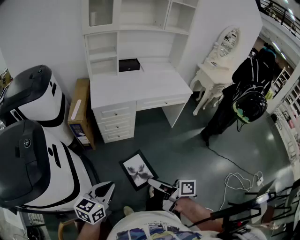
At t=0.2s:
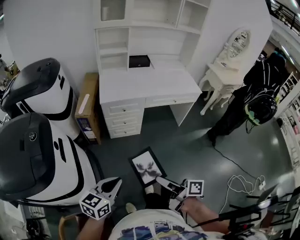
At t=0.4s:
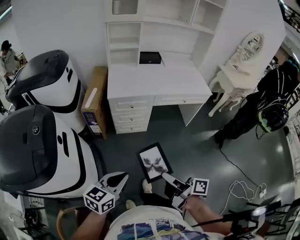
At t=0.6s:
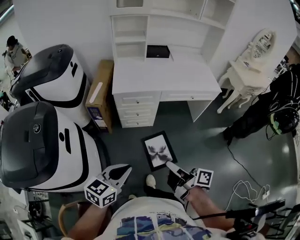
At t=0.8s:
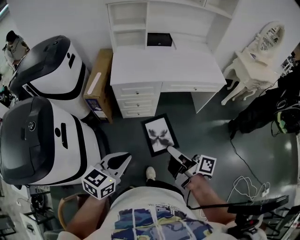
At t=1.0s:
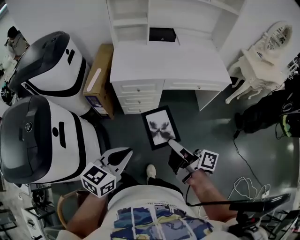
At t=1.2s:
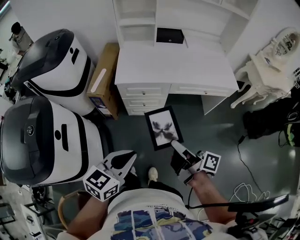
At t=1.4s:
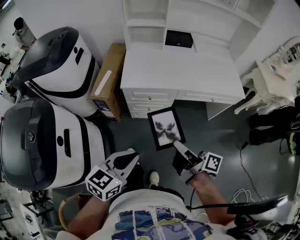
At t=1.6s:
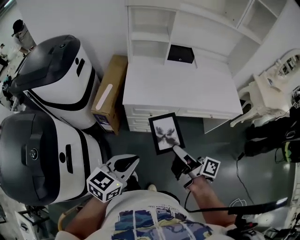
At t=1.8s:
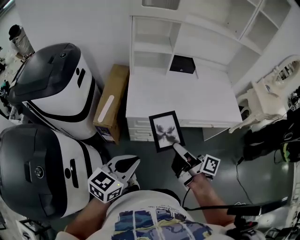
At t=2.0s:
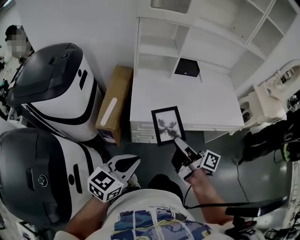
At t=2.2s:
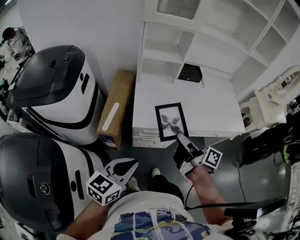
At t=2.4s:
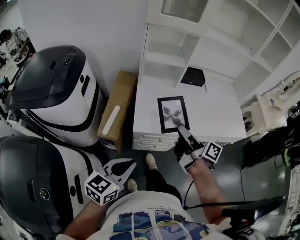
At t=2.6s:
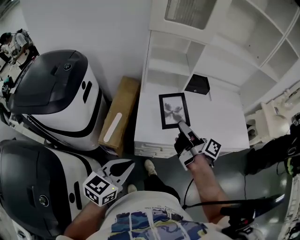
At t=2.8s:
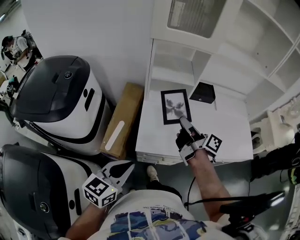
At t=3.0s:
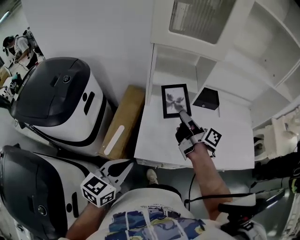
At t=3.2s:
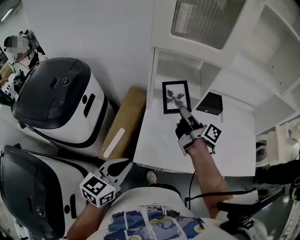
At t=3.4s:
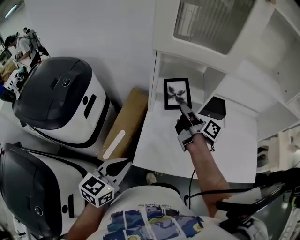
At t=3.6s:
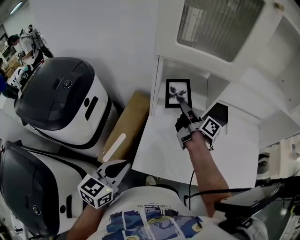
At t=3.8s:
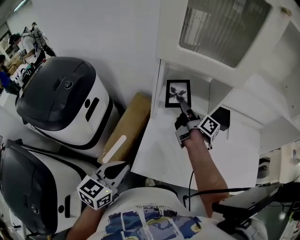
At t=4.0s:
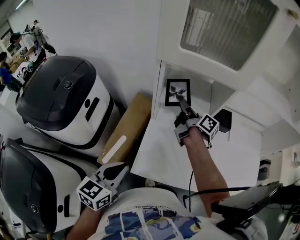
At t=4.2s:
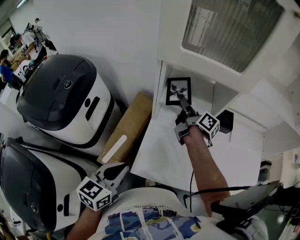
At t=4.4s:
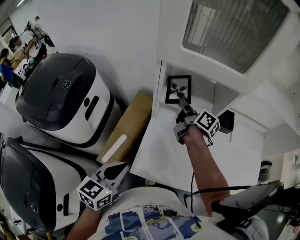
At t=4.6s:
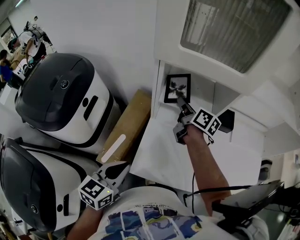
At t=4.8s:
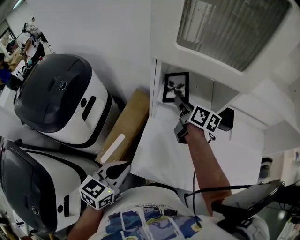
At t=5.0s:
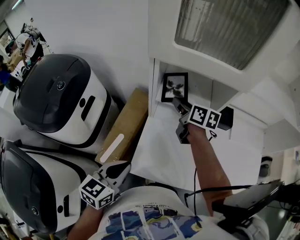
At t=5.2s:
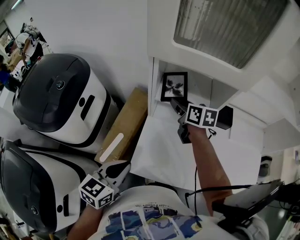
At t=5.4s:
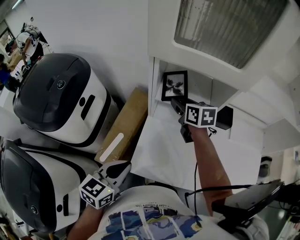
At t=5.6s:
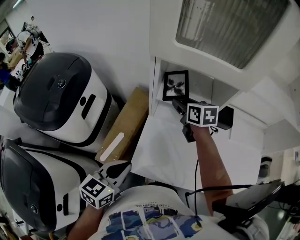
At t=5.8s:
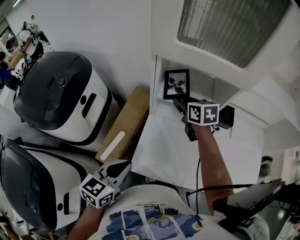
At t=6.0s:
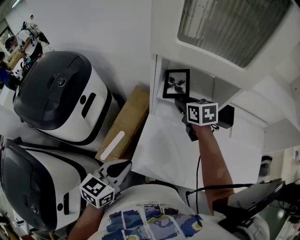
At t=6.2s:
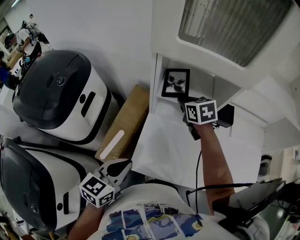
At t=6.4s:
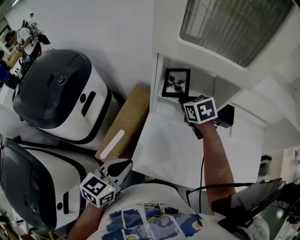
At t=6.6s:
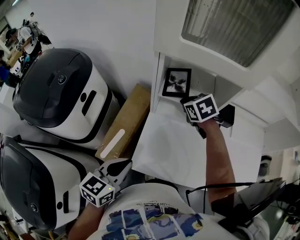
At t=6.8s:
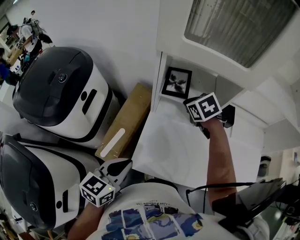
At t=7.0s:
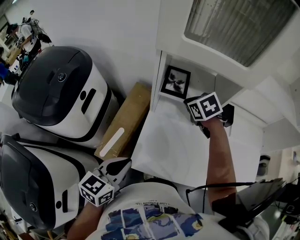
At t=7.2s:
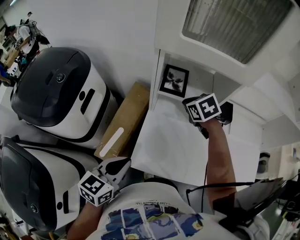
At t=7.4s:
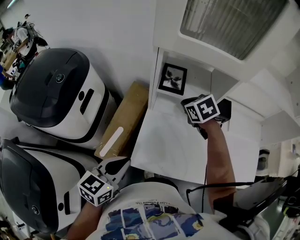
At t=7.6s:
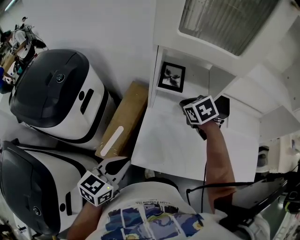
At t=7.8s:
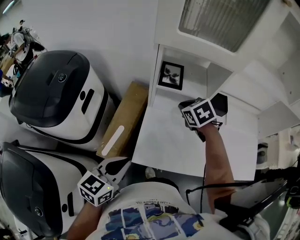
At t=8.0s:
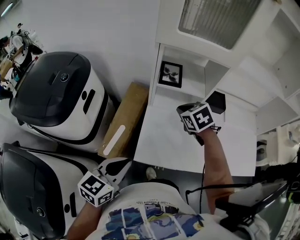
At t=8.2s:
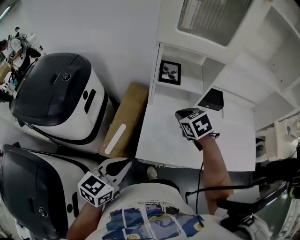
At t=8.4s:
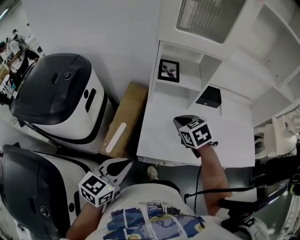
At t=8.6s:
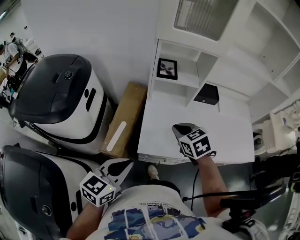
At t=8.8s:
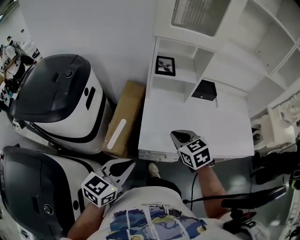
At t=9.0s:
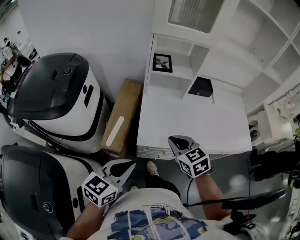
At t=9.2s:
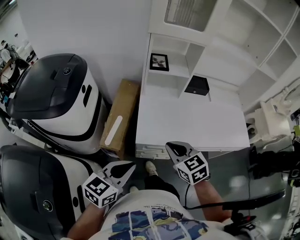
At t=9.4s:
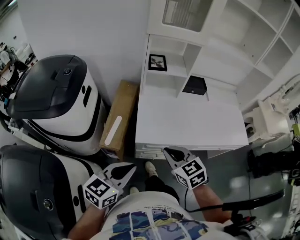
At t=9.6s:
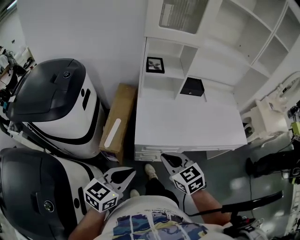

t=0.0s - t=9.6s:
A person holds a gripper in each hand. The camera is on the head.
t=0.0s - t=1.6s: The two grippers go roughly 30 cm forward.
t=1.6s - t=3.2s: The left gripper travels forward by some 30 cm. The right gripper moves forward, roughly 50 cm.
t=3.2s - t=4.8s: The right gripper shifts about 15 cm forward, and turns by about 30 degrees; the left gripper goes roughly 10 cm forward.
t=4.8s - t=6.4s: The right gripper twists about 40 degrees counterclockwise, seen from behind.
t=6.4s - t=8.0s: The right gripper is displaced backward by approximately 10 cm. The left gripper goes some 5 cm backward.
t=8.0s - t=9.6s: The left gripper is displaced backward by roughly 15 cm. Meanwhile the right gripper is displaced backward by some 35 cm, and rotates some 20 degrees.

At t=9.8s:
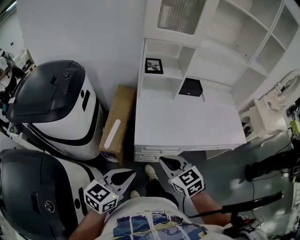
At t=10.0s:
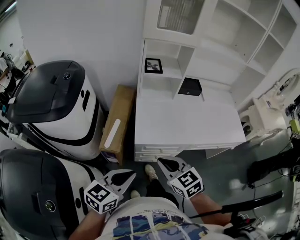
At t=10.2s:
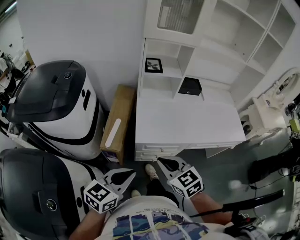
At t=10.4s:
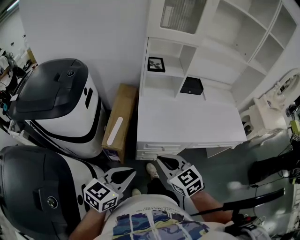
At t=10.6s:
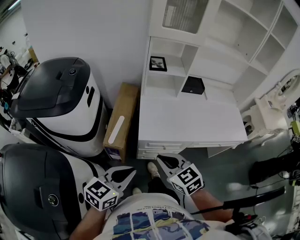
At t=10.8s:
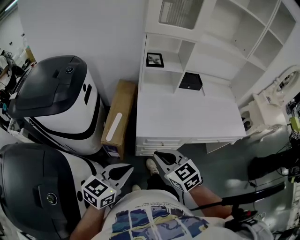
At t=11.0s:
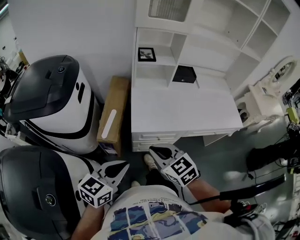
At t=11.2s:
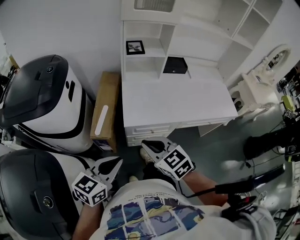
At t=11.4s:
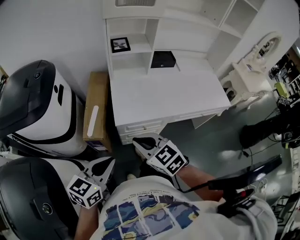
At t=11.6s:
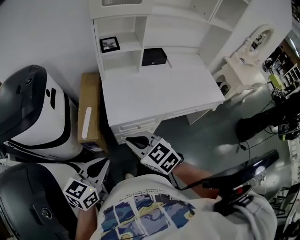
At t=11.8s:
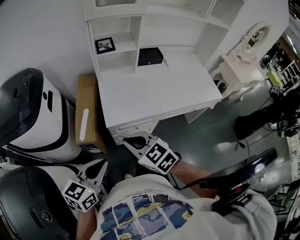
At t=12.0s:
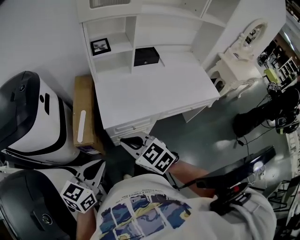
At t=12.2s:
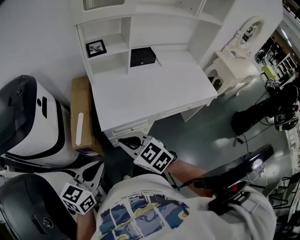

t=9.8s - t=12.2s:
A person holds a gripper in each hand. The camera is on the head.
t=9.8s - t=12.2s: The grippers make only small movements.

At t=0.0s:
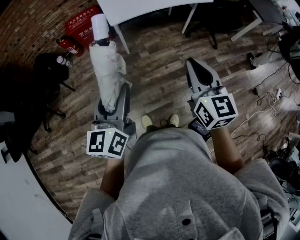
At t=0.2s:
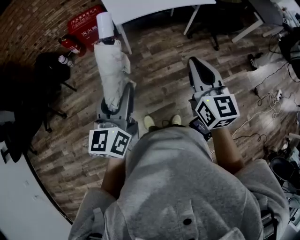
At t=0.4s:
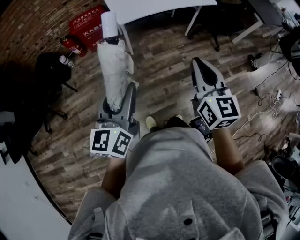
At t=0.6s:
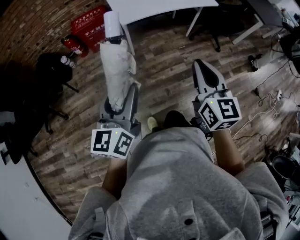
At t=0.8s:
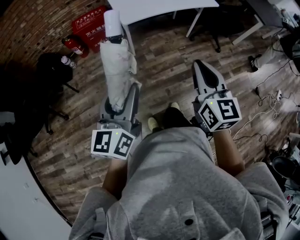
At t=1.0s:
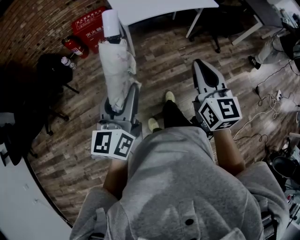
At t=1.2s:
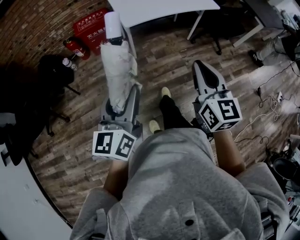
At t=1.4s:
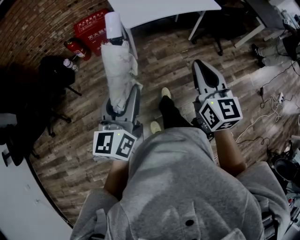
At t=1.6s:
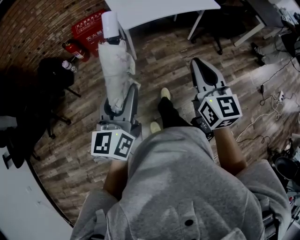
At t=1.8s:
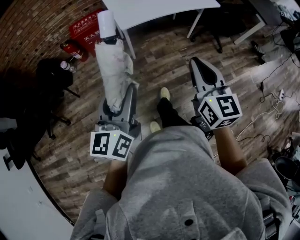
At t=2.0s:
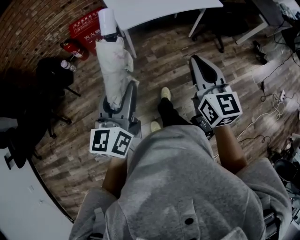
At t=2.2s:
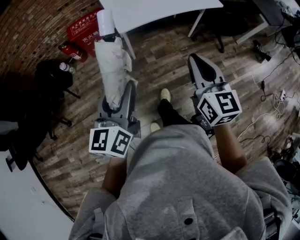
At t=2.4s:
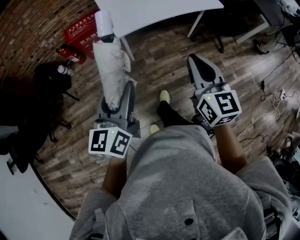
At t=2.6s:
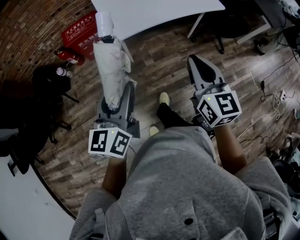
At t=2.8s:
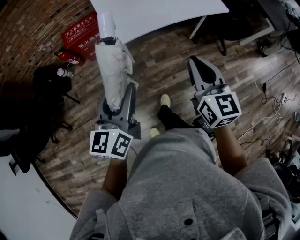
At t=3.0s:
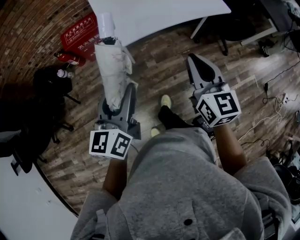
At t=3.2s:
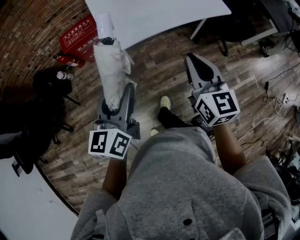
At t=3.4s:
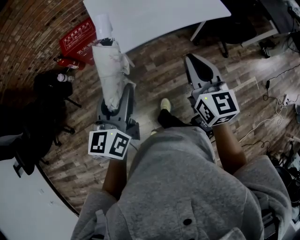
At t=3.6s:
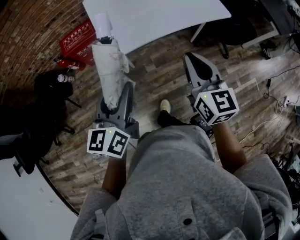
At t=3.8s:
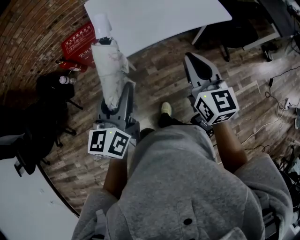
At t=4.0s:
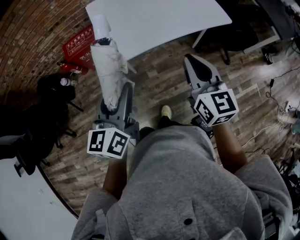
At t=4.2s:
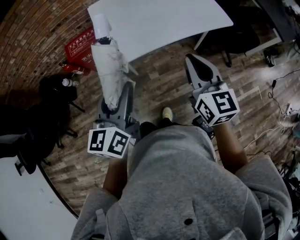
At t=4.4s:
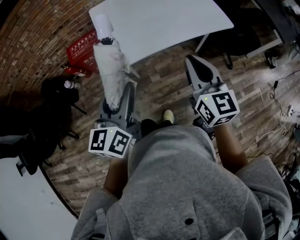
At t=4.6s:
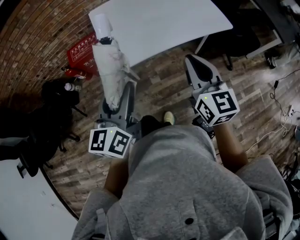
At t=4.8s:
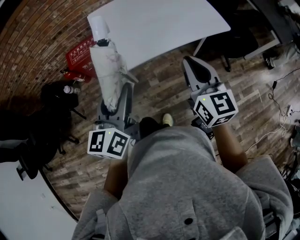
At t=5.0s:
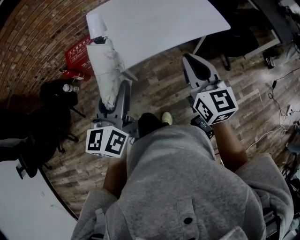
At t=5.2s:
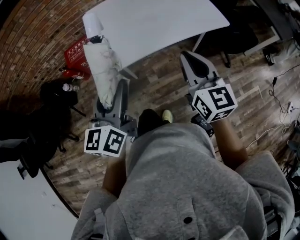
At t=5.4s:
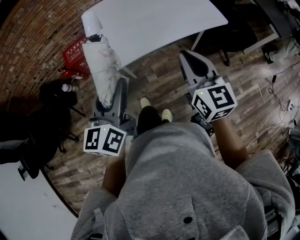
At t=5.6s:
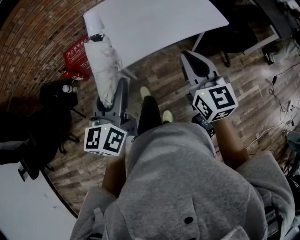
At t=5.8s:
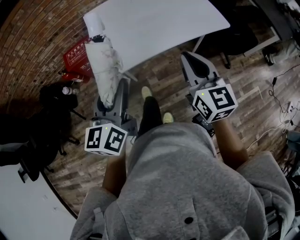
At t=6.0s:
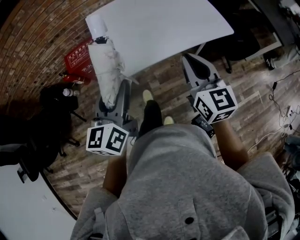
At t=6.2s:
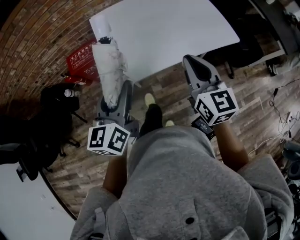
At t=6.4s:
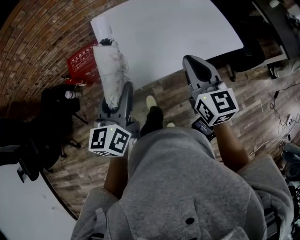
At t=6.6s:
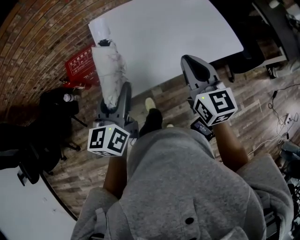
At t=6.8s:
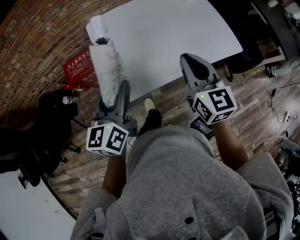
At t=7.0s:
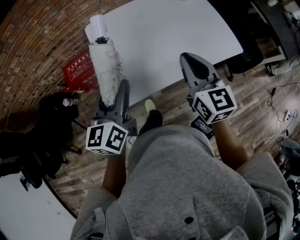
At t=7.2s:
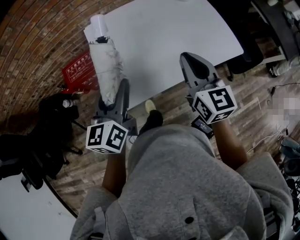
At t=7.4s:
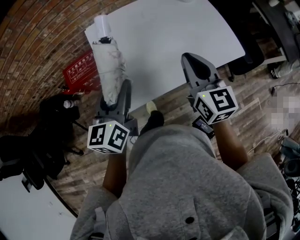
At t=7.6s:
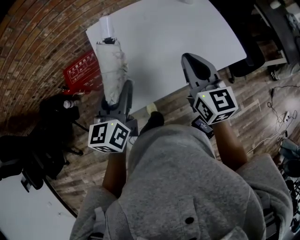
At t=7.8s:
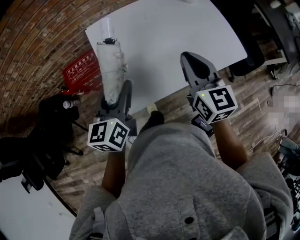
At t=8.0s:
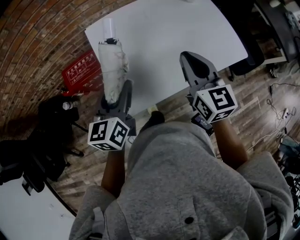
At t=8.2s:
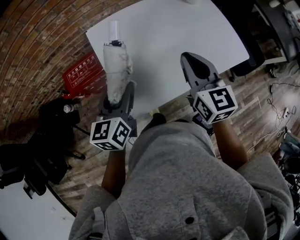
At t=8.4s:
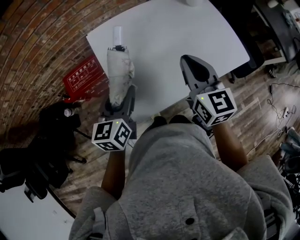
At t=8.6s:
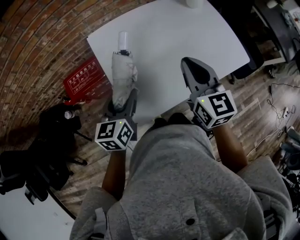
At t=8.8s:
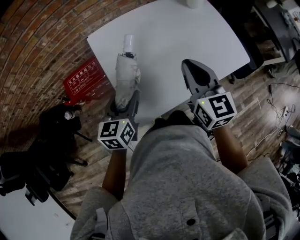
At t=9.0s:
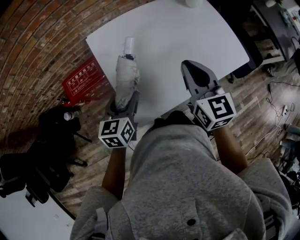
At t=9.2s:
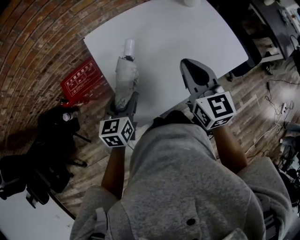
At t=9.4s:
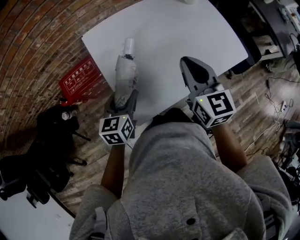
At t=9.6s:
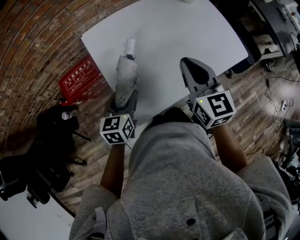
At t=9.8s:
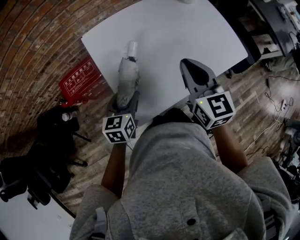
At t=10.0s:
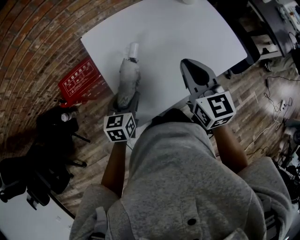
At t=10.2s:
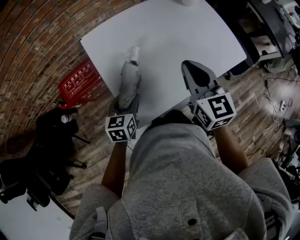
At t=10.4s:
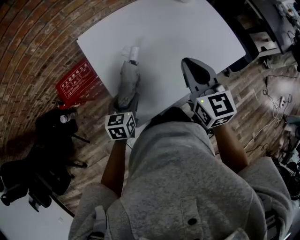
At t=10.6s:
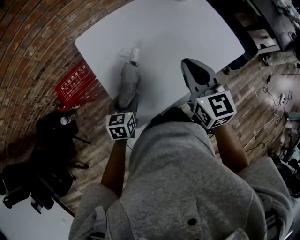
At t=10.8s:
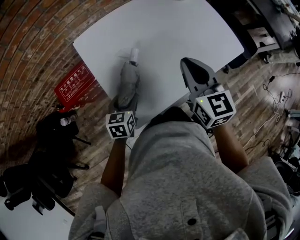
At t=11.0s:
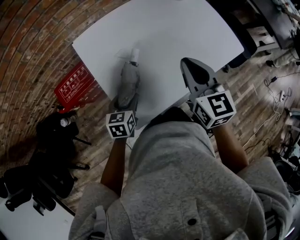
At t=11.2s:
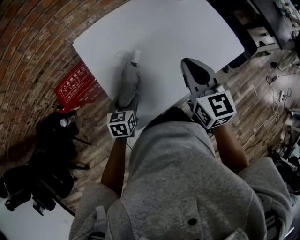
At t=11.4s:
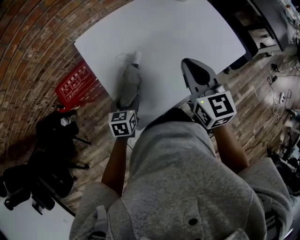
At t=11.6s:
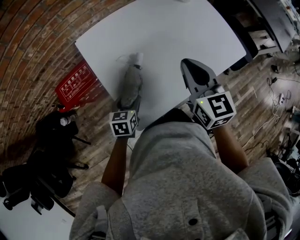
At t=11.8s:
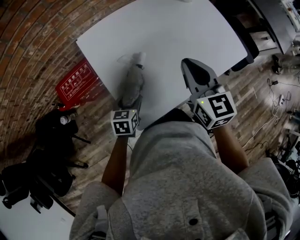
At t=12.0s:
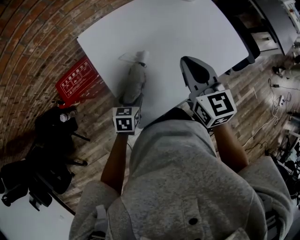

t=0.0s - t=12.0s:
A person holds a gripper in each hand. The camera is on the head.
t=0.0s - t=1.6s: The two grippers go approximately 5 cm to the left.
t=1.6s - t=3.0s: The grippers both shift forward by approximately 20 cm.
t=3.0s - t=4.4s: The grippers both shift forward by approximately 10 cm.
t=4.4s - t=6.0s: The two grippers go approximately 10 cm forward.
t=6.0s - t=7.6s: Both grippers move forward, some 20 cm.
t=7.6s - t=9.0s: The left gripper shifts roughly 10 cm downward; the right gripper shifts approximately 5 cm to the left.
t=9.0s - t=10.4s: The left gripper moves downward, about 10 cm.
t=10.4s - t=12.0s: The left gripper moves downward, approximately 5 cm.
